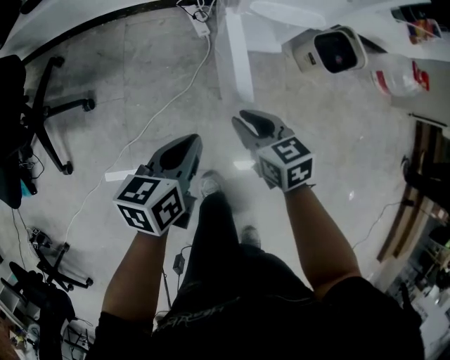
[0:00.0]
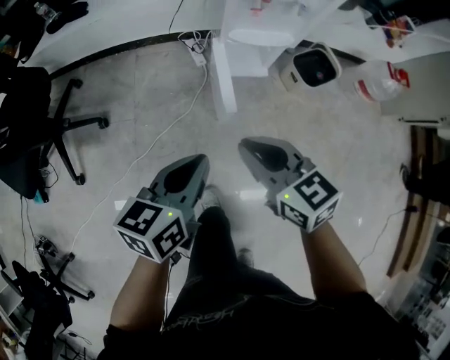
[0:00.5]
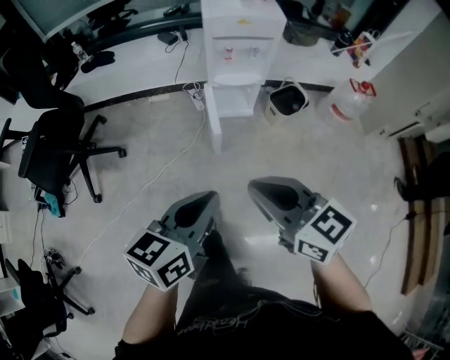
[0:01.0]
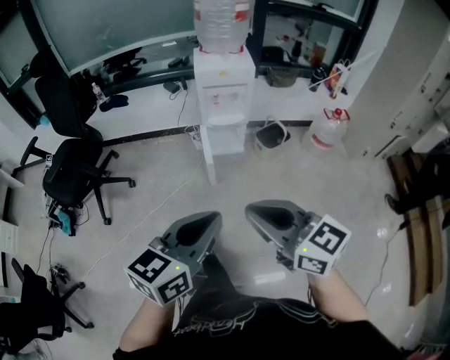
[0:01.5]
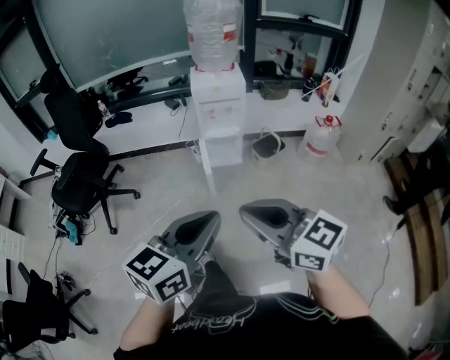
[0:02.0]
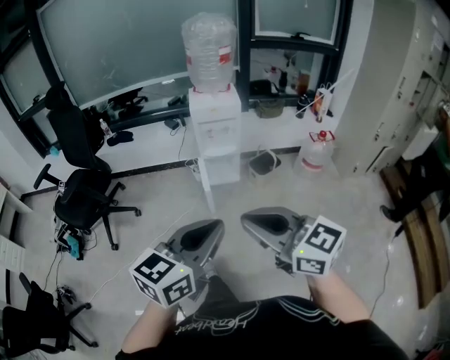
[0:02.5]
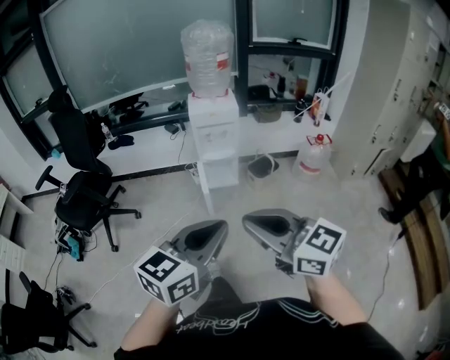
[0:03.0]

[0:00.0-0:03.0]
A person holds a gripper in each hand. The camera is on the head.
0:00.0 to 0:01.5: Both grippers are carried backward, about 40 cm. The grippers both shift upward by approximately 50 cm. The left gripper changes its angle by about 30 degrees. The right gripper points its fingers roughly 30 degrees further upward.
0:01.5 to 0:03.0: The right gripper is displaced upward and backward by roughly 15 cm. Meanwhile the left gripper heads upward, backward and to the right, covering some 15 cm.

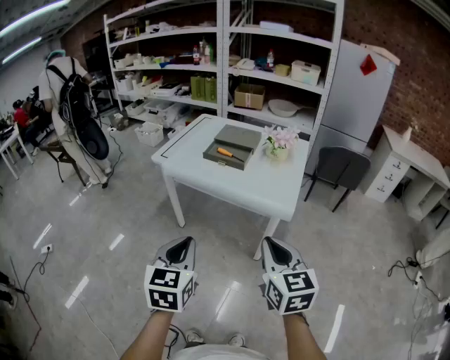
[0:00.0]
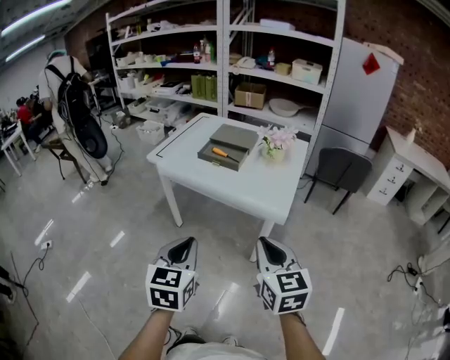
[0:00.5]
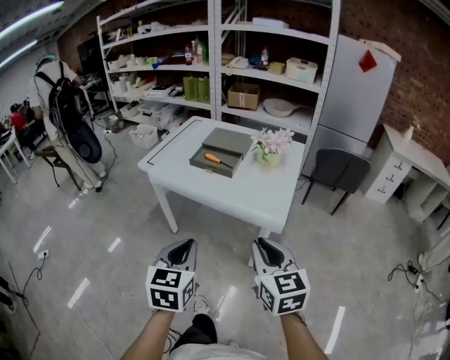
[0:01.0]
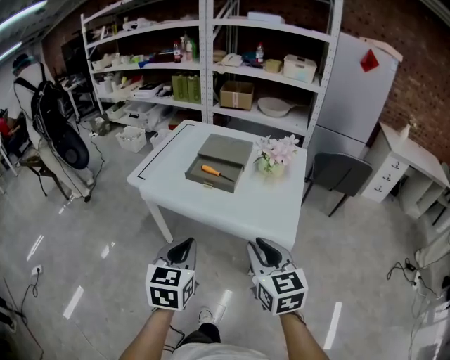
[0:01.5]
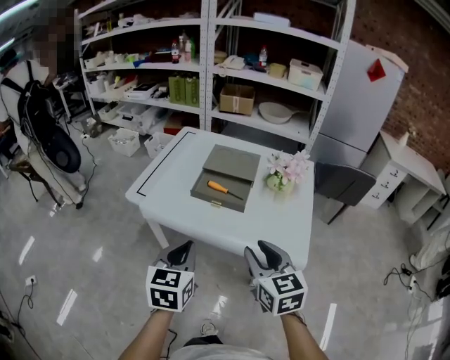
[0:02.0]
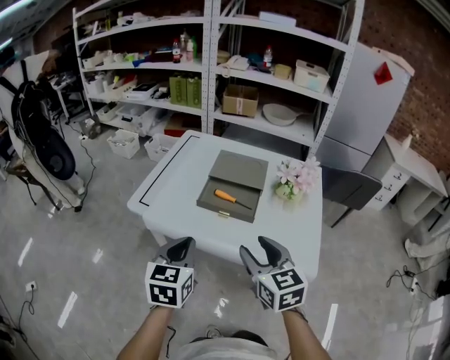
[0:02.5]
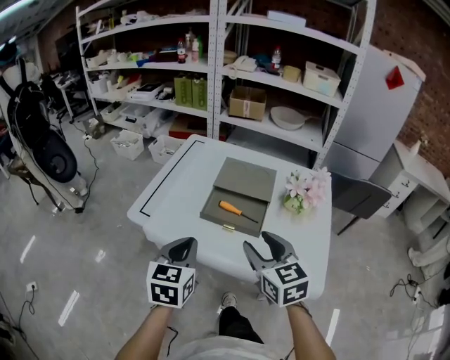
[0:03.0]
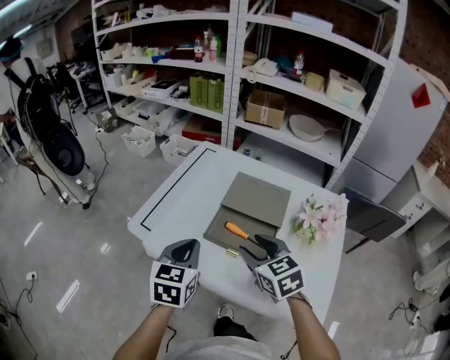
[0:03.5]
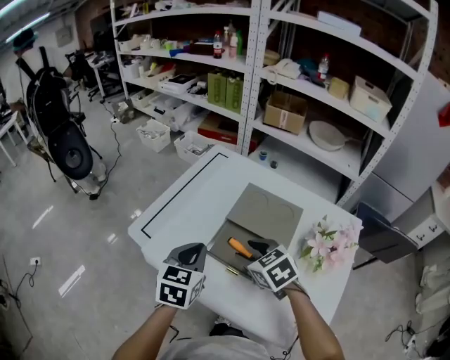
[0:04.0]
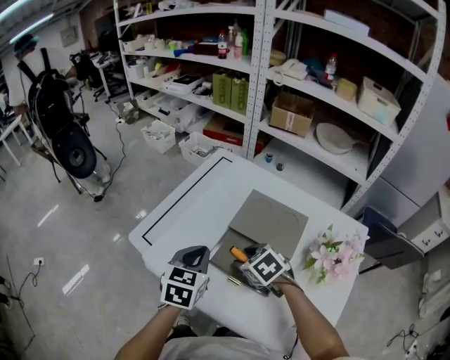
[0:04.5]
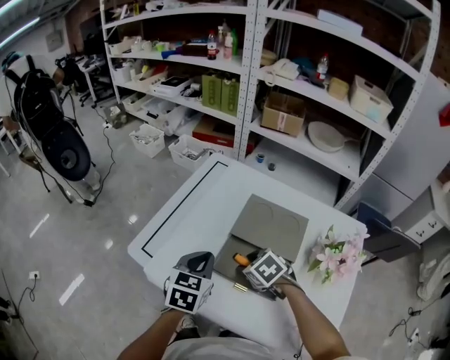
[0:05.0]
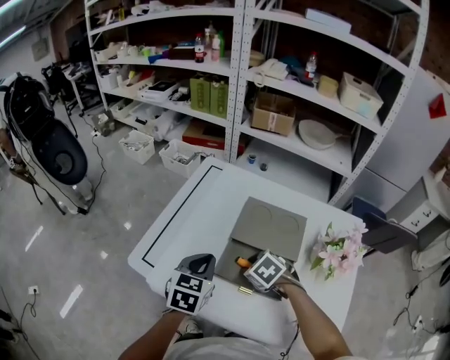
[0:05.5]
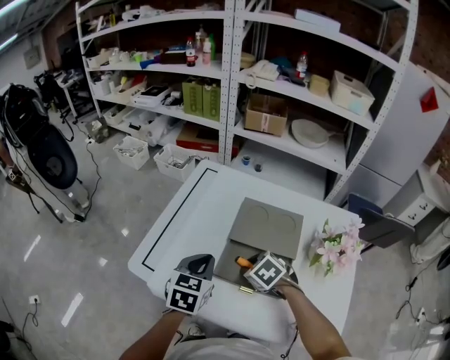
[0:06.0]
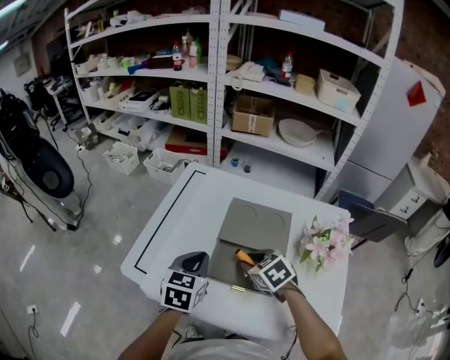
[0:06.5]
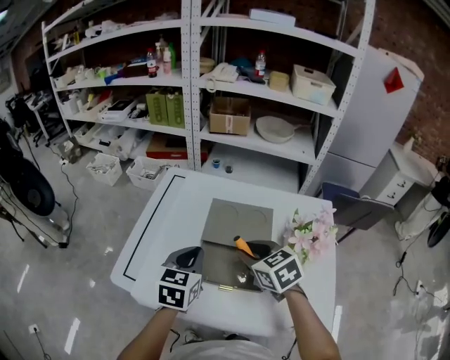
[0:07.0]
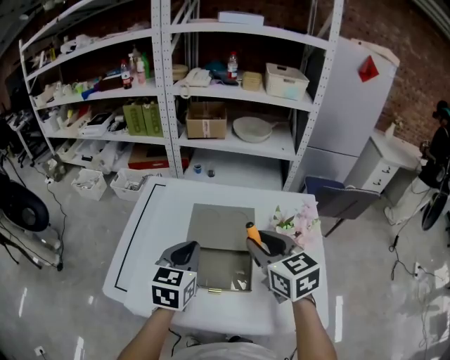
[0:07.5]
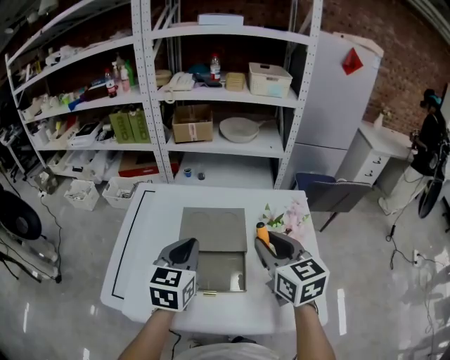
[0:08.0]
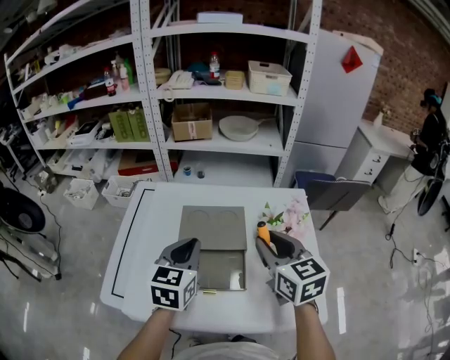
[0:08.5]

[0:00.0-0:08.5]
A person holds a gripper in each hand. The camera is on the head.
0:00.0 to 0:02.0: Both grippers travel together forward, about 30 cm. The right gripper opens.
0:02.0 to 0:04.0: The grippers both shift forward by about 30 cm. The right gripper rotates roughly 40 degrees.
0:04.0 to 0:06.5: The left gripper shifts approximately 5 cm forward. The right gripper closes up.
0:06.5 to 0:08.5: The left gripper travels to the right and upward by roughly 15 cm. Meanwhile the right gripper shifts some 25 cm upward and to the right, and angles its fingers upward, by roughly 30 degrees.

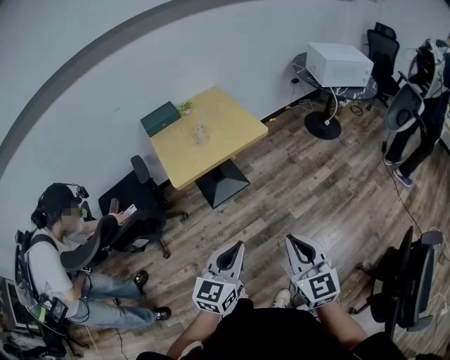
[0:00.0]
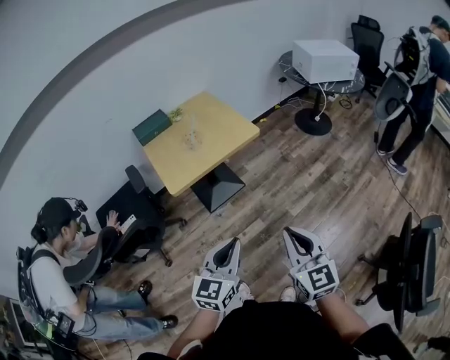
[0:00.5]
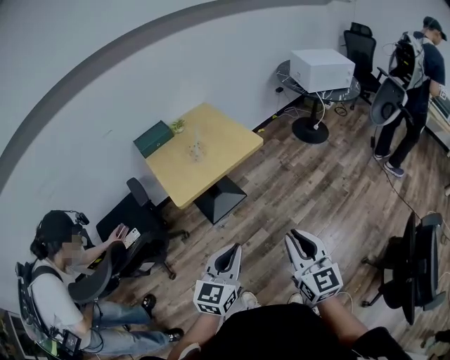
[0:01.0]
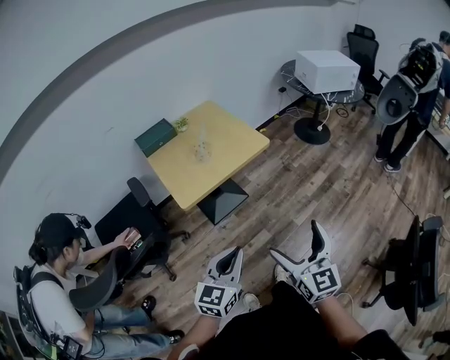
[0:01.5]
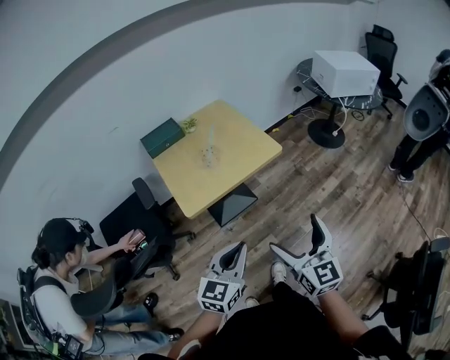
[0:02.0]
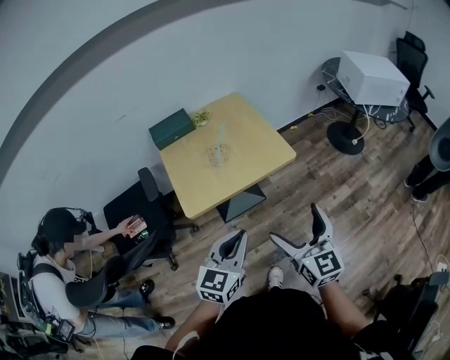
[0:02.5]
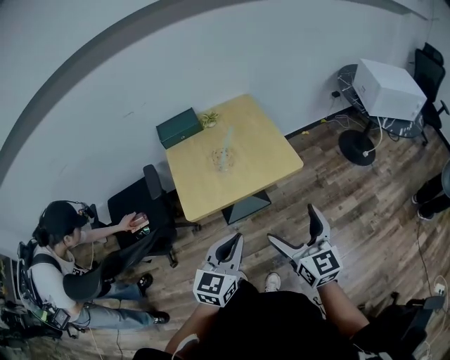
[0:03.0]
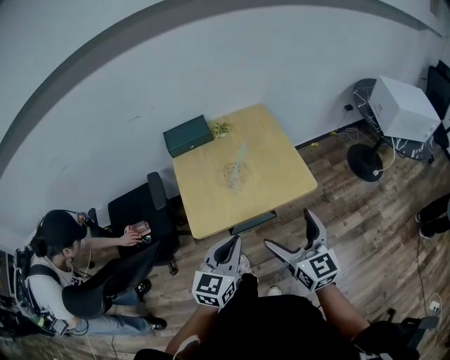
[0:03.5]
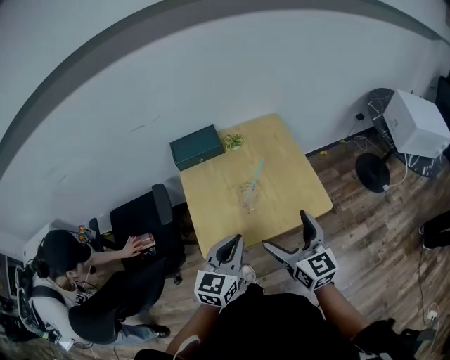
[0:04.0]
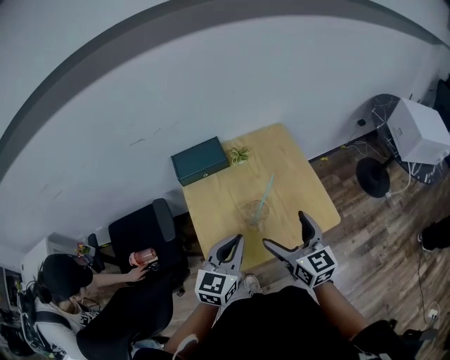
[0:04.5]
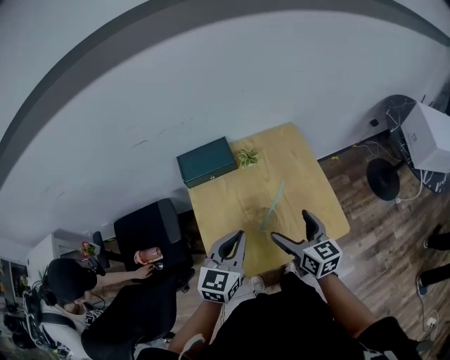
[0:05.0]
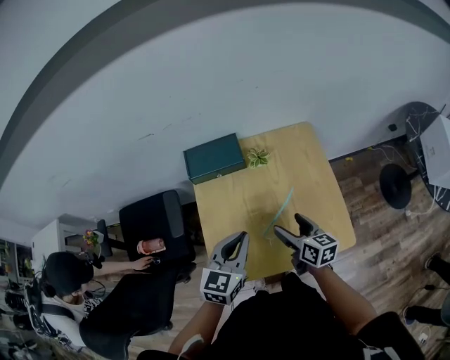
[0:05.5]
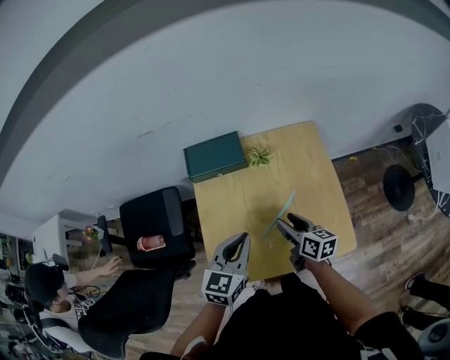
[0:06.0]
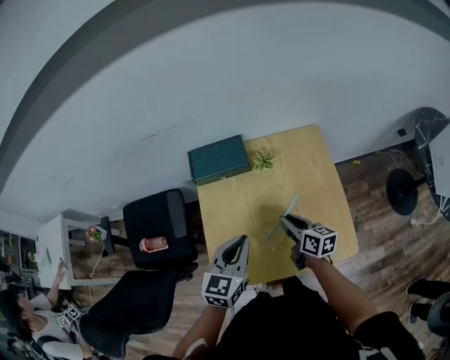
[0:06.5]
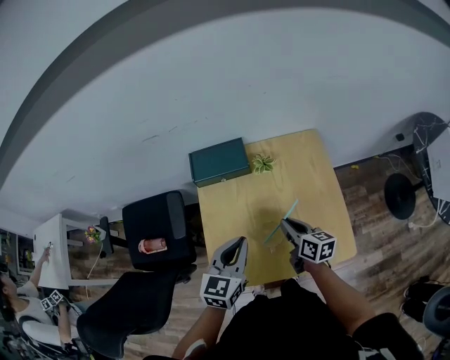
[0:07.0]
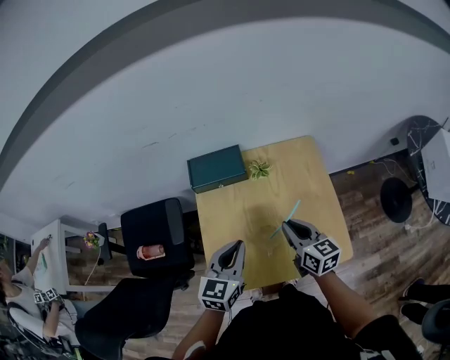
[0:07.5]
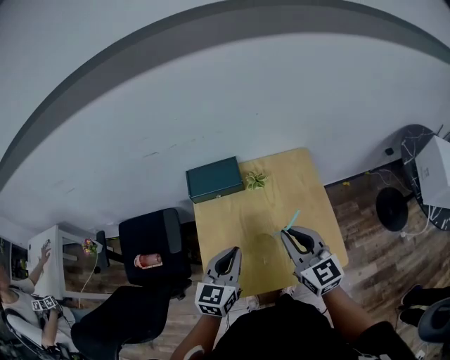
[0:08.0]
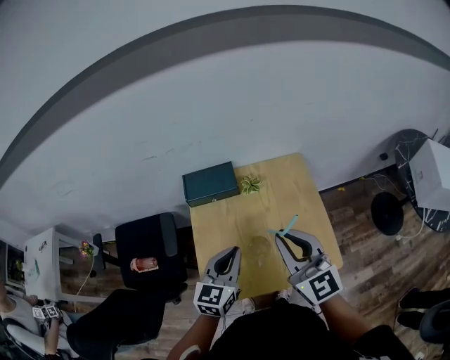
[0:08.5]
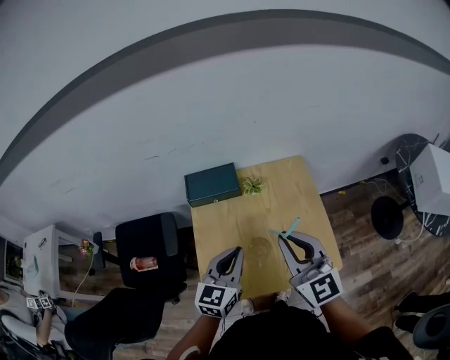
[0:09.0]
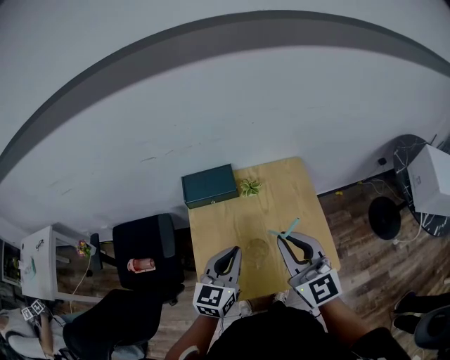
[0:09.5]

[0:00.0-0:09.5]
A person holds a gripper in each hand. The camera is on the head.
0:00.0 to 0:02.0: The grippers both shift forward and to the left by roughly 15 cm. The right gripper opens its fingers.
0:02.0 to 0:04.0: The two grippers go some 35 cm forward. The right gripper turns by roughly 20 degrees.
0:04.0 to 0:05.5: The right gripper shifts about 25 cm forward and downward, and swivels some 30 degrees; the left gripper is displaced forward by some 15 cm.
0:05.5 to 0:07.5: The right gripper goes some 5 cm upward, and closes its fingers.
0:07.5 to 0:09.5: The right gripper moves upward, approximately 20 cm, and swivels about 40 degrees.

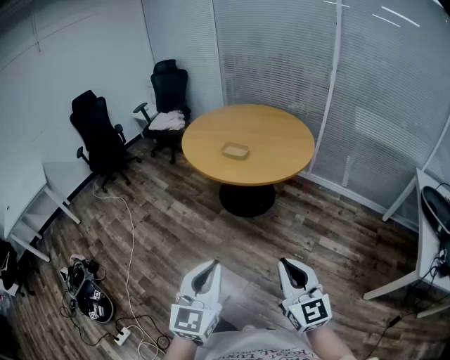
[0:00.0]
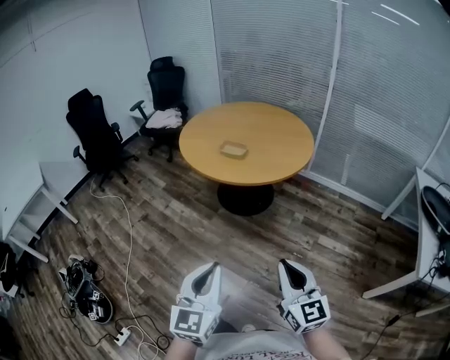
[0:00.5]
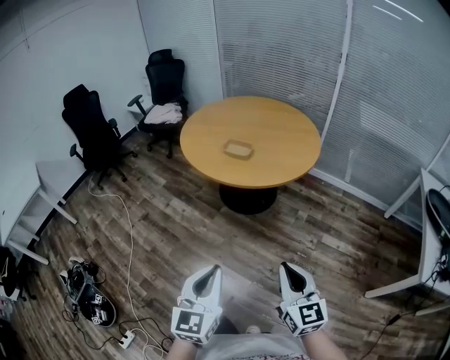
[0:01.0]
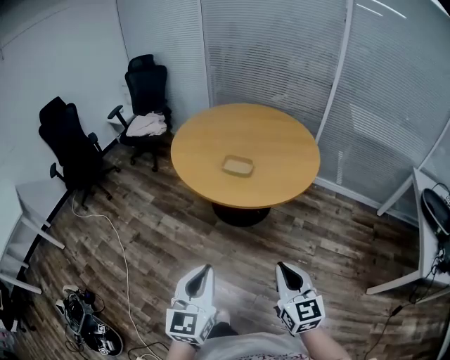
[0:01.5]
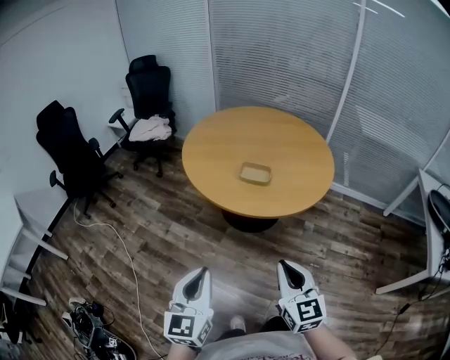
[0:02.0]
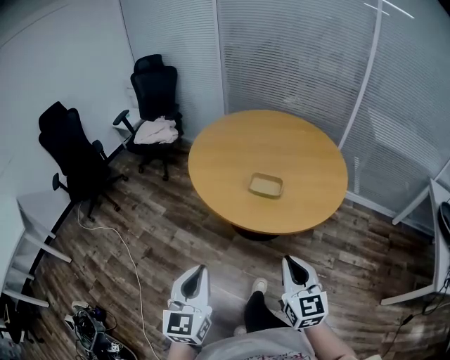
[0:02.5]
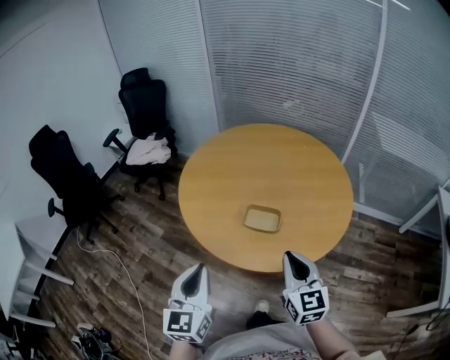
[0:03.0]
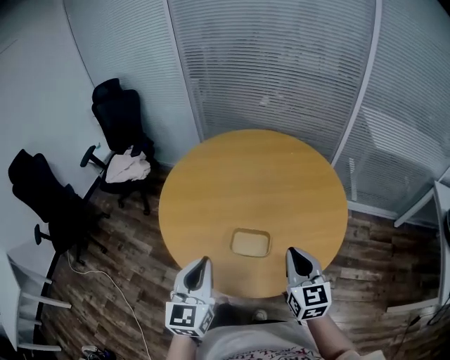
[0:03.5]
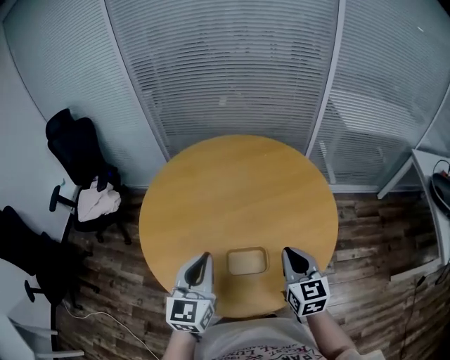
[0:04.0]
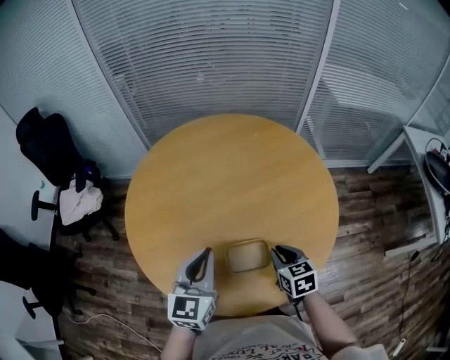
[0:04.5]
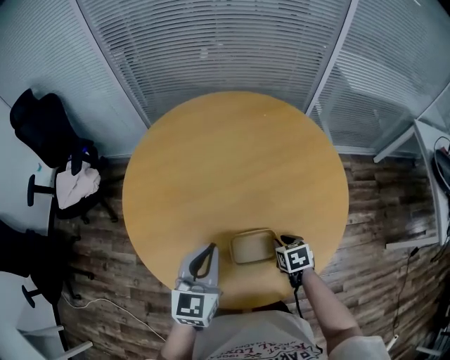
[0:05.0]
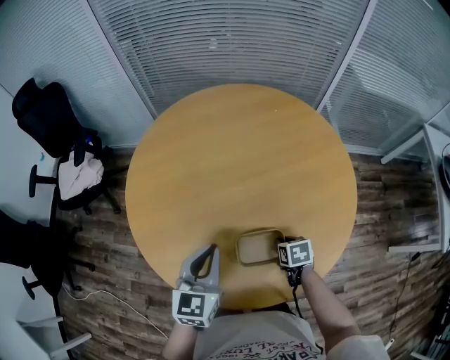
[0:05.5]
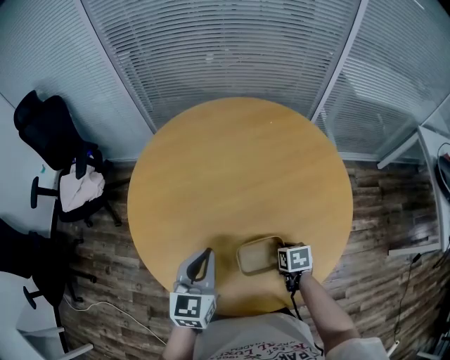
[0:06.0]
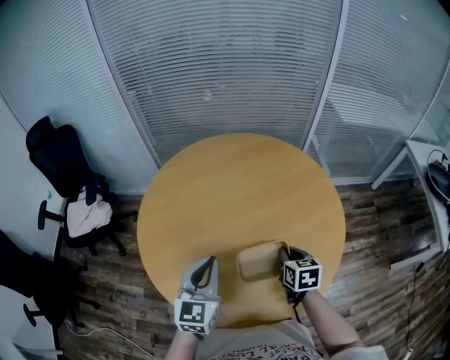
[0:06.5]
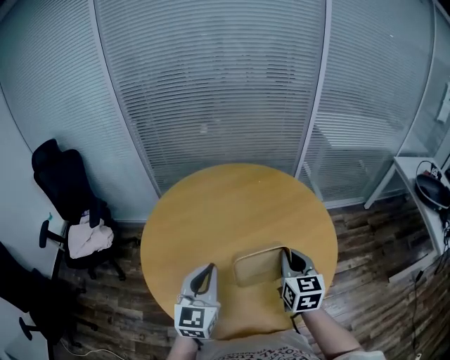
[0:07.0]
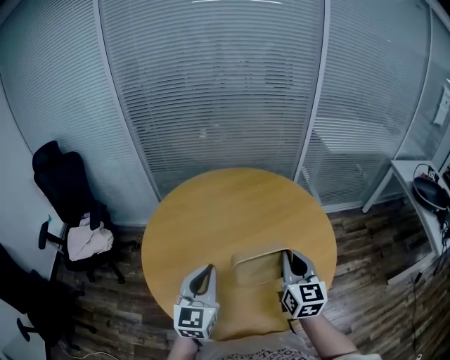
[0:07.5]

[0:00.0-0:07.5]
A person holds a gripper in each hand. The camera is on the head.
0:00.0 to 0:02.0: Both grippers travel together forward and to the left, approximately 35 cm.
0:02.0 to 0:04.0: Both grippers are carried forward, about 50 cm. The left gripper turns by approximately 20 degrees. The right gripper swivels roughly 20 degrees.
0:04.0 to 0:05.5: The right gripper is displaced downward by some 30 cm, and angles its fingers downward, by roughly 50 degrees, while the left gripper heads downward and forward, covering about 15 cm.
0:05.5 to 0:07.5: The right gripper moves upward, some 35 cm, and angles its fingers upward, by some 60 degrees. The left gripper goes approximately 10 cm upward.
